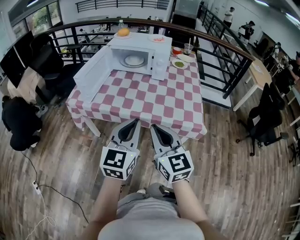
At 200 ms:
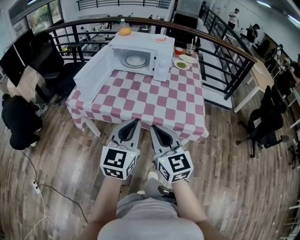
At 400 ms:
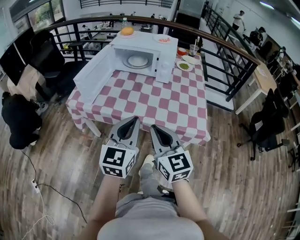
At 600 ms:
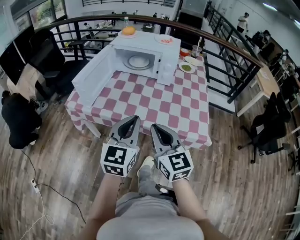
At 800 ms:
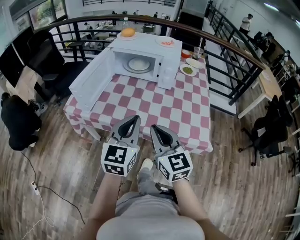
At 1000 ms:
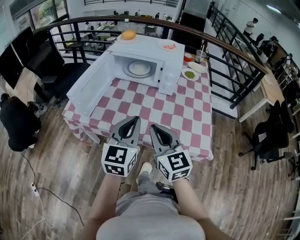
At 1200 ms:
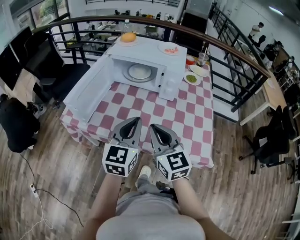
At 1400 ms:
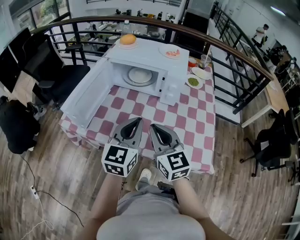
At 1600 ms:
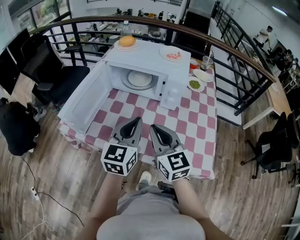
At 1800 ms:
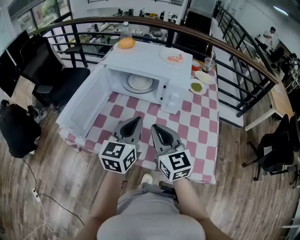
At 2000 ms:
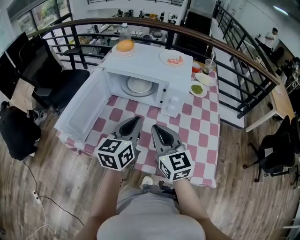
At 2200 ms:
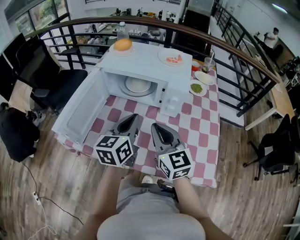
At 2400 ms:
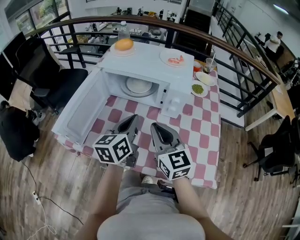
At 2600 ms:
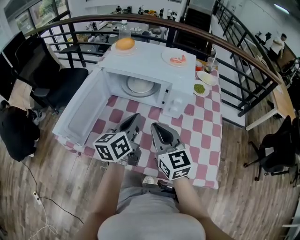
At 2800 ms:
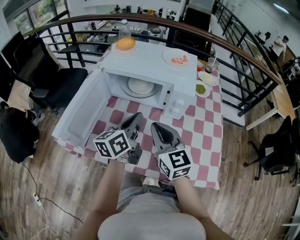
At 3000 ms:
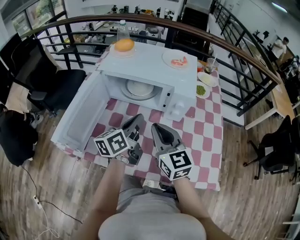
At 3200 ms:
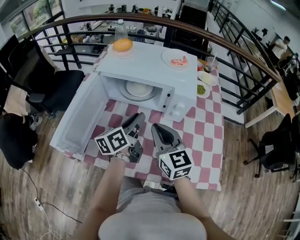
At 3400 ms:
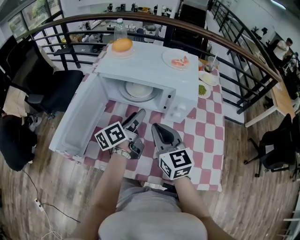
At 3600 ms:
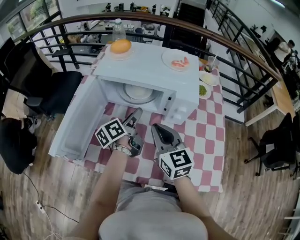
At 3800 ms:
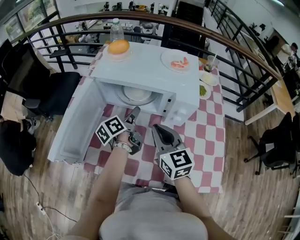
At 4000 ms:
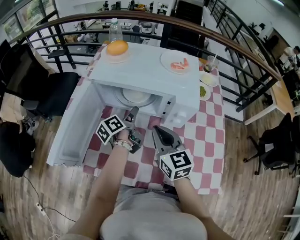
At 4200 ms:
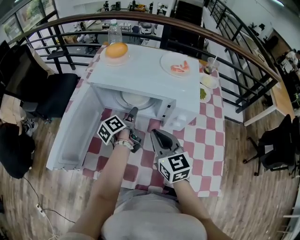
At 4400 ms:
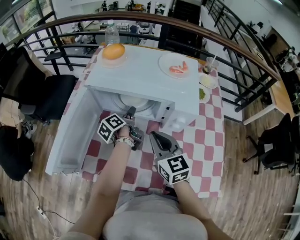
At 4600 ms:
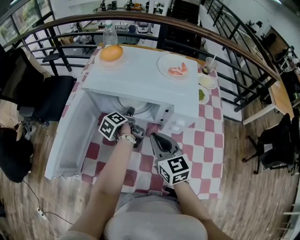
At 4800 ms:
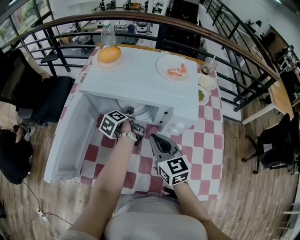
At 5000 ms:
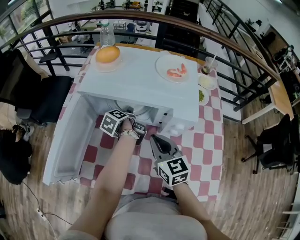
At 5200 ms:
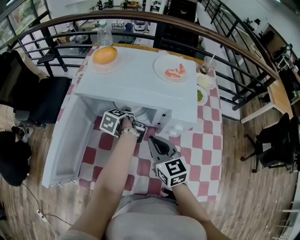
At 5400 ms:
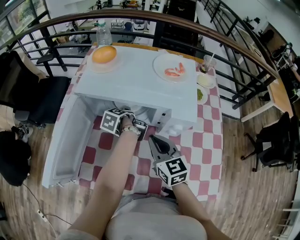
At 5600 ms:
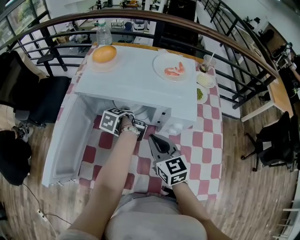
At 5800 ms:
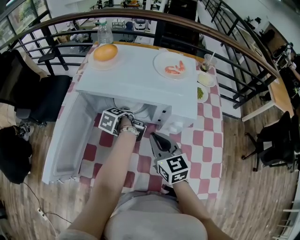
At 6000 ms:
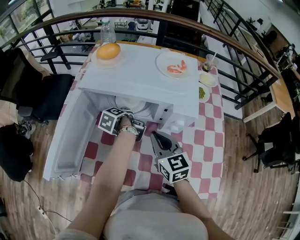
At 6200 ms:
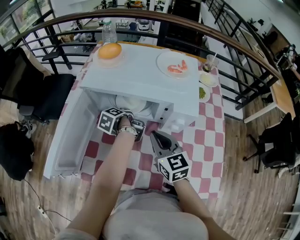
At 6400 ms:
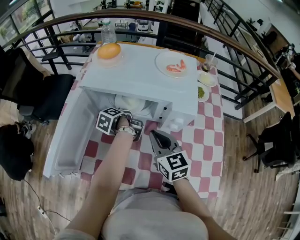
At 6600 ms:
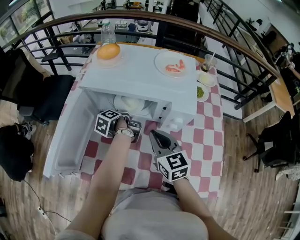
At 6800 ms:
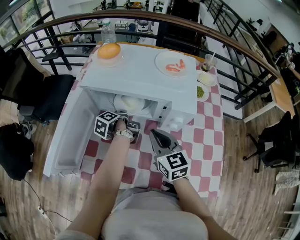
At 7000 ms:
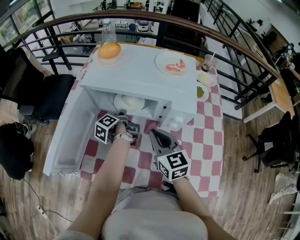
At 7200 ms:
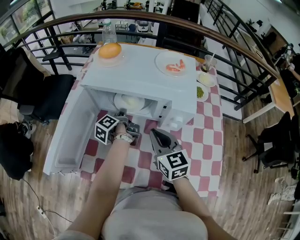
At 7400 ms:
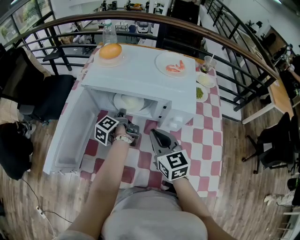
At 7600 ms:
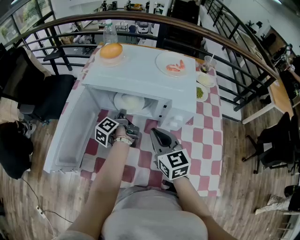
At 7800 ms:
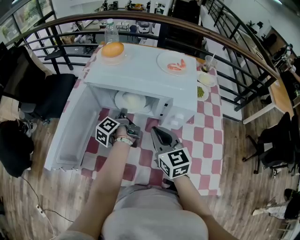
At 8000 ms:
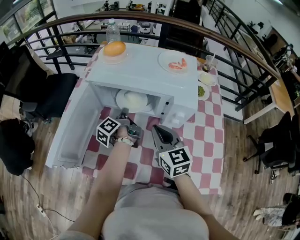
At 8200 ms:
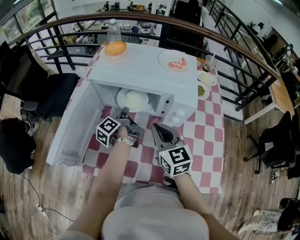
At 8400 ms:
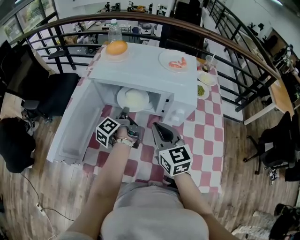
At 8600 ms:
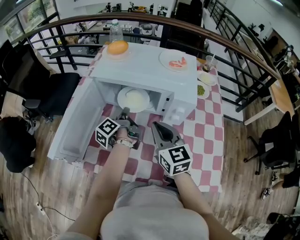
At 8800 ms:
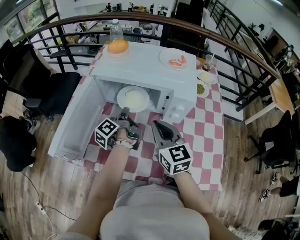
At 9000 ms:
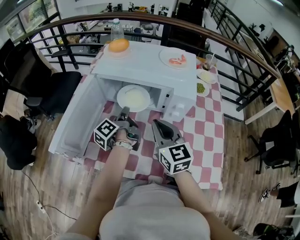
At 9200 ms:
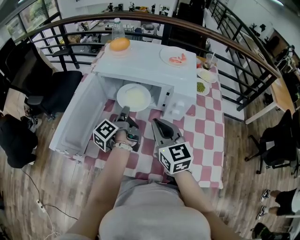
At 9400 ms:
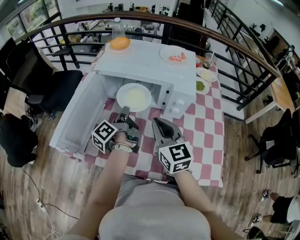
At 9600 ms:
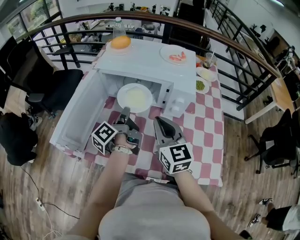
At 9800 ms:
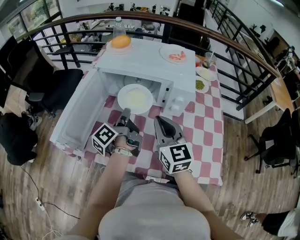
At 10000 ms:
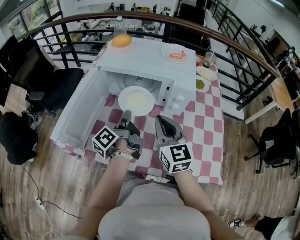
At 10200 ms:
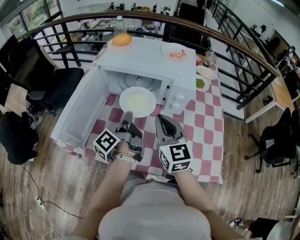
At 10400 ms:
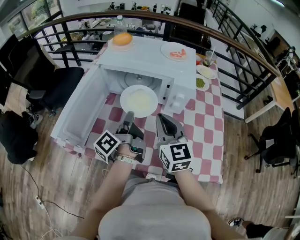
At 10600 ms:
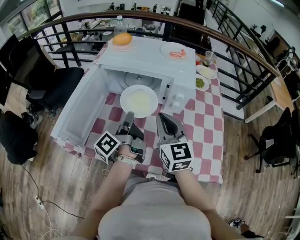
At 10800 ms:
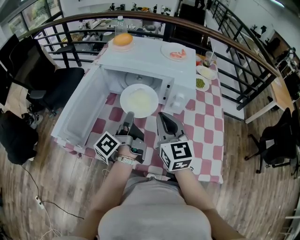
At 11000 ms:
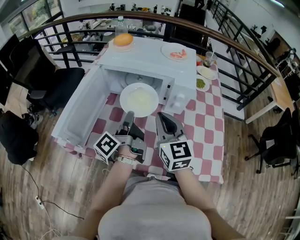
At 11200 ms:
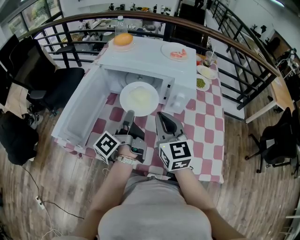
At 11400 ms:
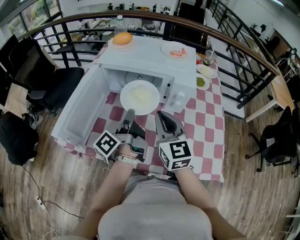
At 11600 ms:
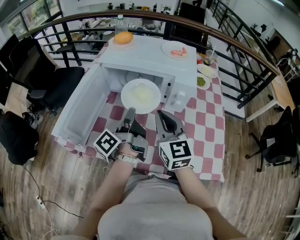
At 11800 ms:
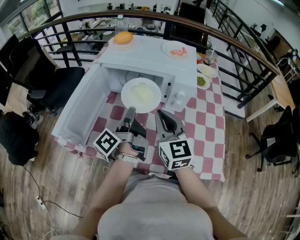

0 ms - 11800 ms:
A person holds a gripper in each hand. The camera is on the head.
0 ms - 1400 ms: The two grippers go approximately 25 cm forward.
1400 ms - 3000 ms: The left gripper is displaced forward and downward by roughly 20 cm, and rolls counterclockwise, seen from behind, by approximately 40 degrees. The right gripper heads forward, covering roughly 15 cm.
3000 ms - 4400 ms: The right gripper goes some 10 cm forward and downward; the left gripper is displaced forward and downward by some 20 cm, changes its angle by about 40 degrees, and opens.
4400 ms - 6000 ms: The left gripper swivels about 20 degrees, and closes.
6000 ms - 7400 ms: The left gripper rotates about 20 degrees, and closes.
7400 ms - 8800 ms: The left gripper heads backward and upward, covering some 10 cm.
8800 ms - 10400 ms: The right gripper ends up about 5 cm from where it was. Meanwhile the left gripper is displaced backward and upward by some 15 cm.
10400 ms - 11800 ms: There are only small adjustments of the grippers.

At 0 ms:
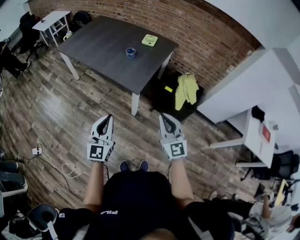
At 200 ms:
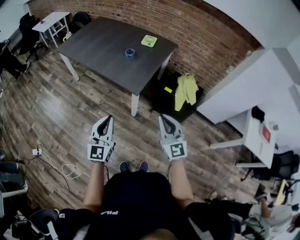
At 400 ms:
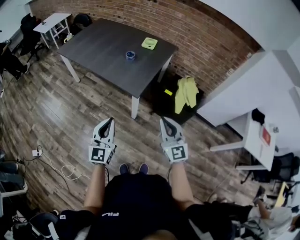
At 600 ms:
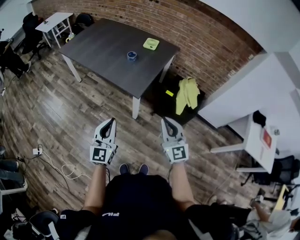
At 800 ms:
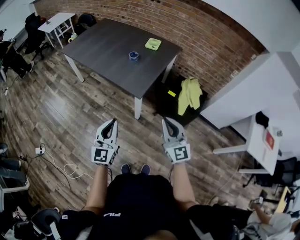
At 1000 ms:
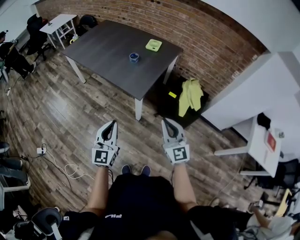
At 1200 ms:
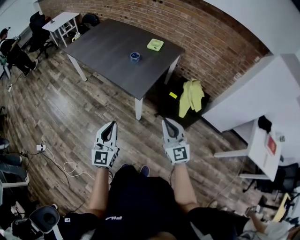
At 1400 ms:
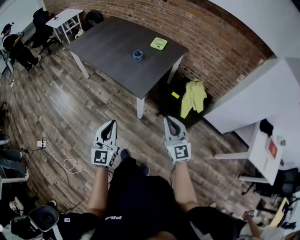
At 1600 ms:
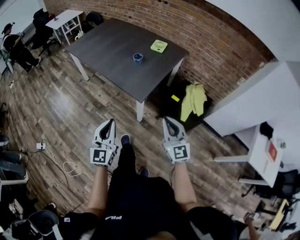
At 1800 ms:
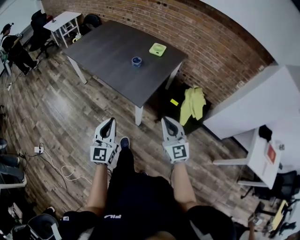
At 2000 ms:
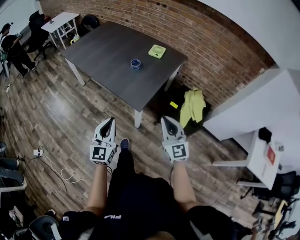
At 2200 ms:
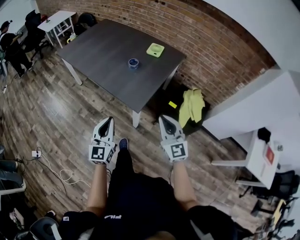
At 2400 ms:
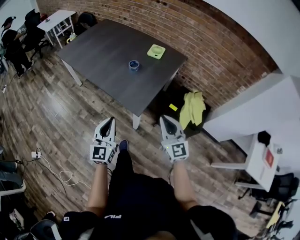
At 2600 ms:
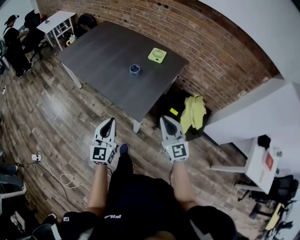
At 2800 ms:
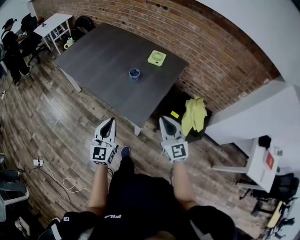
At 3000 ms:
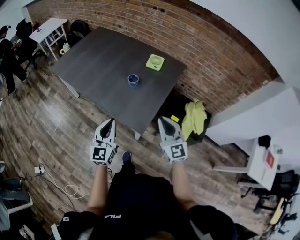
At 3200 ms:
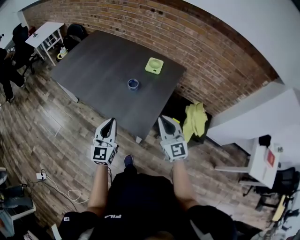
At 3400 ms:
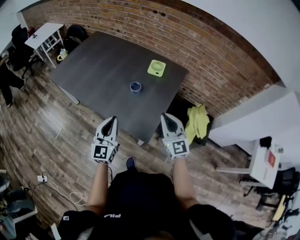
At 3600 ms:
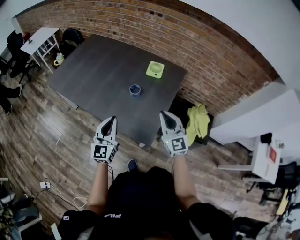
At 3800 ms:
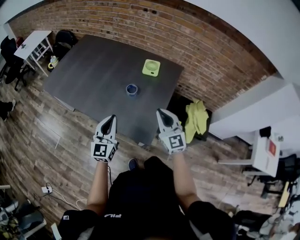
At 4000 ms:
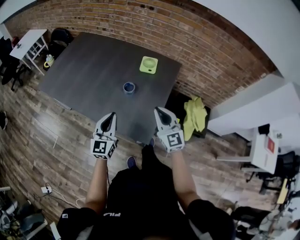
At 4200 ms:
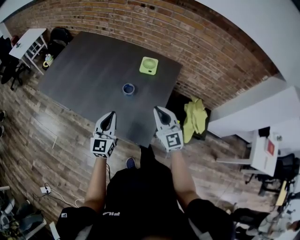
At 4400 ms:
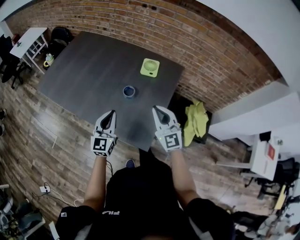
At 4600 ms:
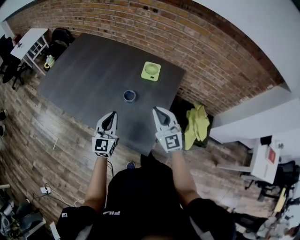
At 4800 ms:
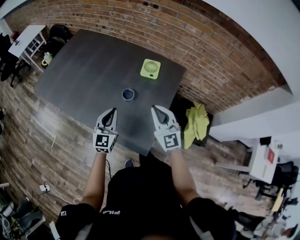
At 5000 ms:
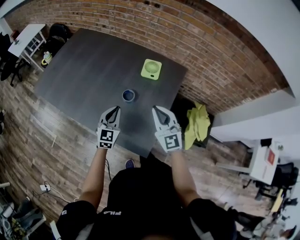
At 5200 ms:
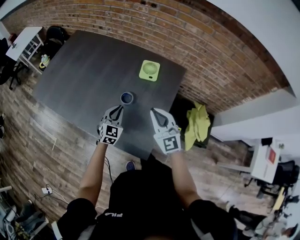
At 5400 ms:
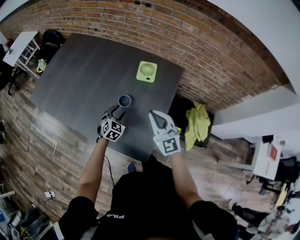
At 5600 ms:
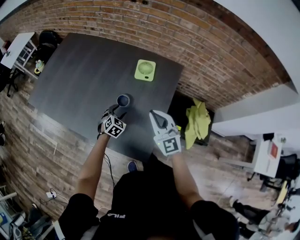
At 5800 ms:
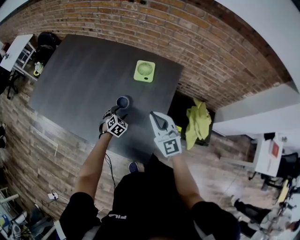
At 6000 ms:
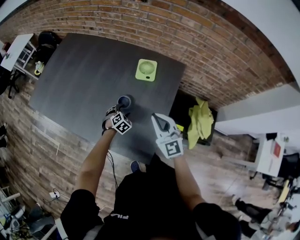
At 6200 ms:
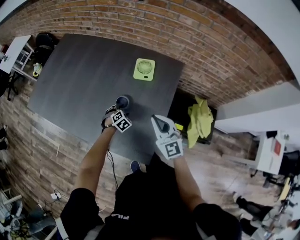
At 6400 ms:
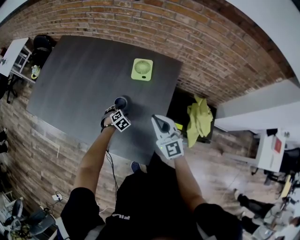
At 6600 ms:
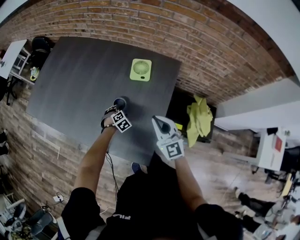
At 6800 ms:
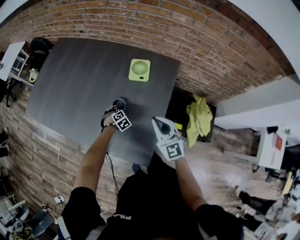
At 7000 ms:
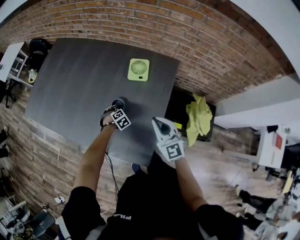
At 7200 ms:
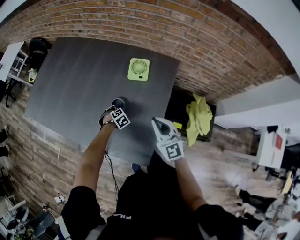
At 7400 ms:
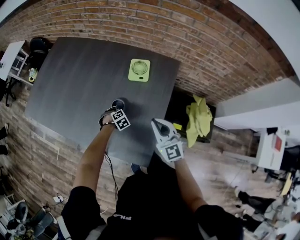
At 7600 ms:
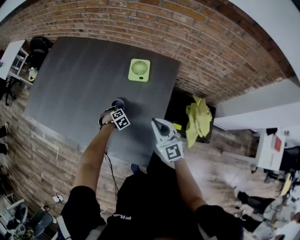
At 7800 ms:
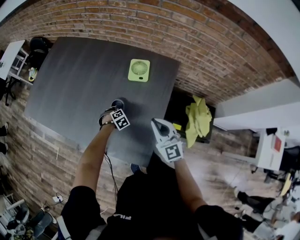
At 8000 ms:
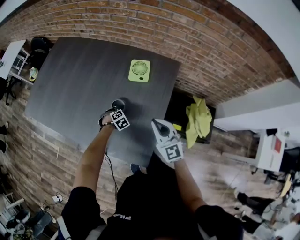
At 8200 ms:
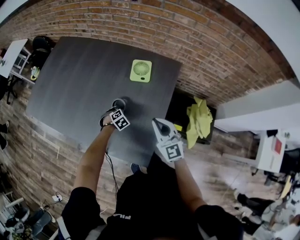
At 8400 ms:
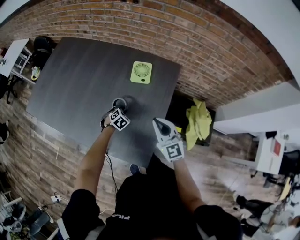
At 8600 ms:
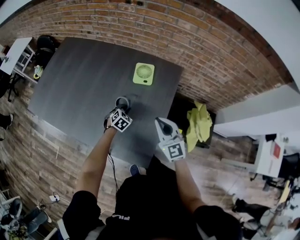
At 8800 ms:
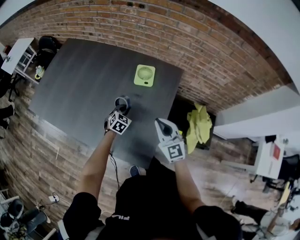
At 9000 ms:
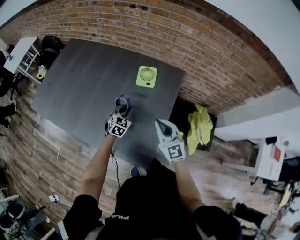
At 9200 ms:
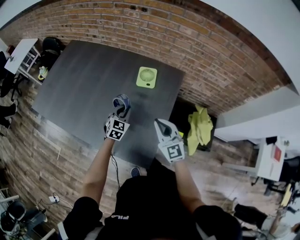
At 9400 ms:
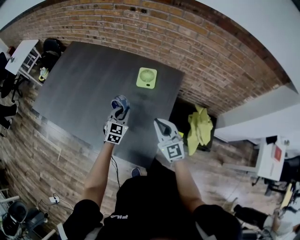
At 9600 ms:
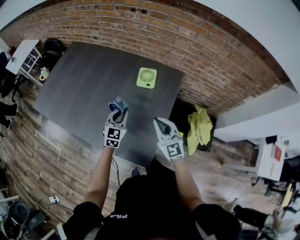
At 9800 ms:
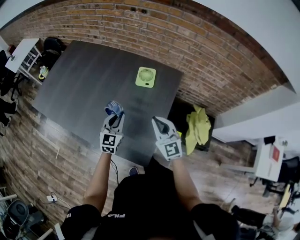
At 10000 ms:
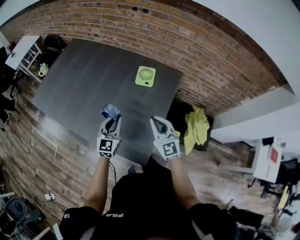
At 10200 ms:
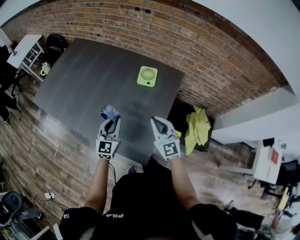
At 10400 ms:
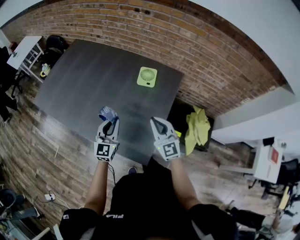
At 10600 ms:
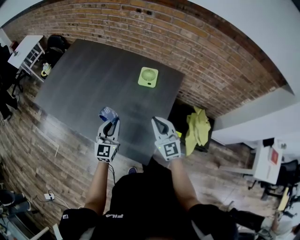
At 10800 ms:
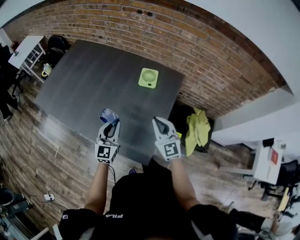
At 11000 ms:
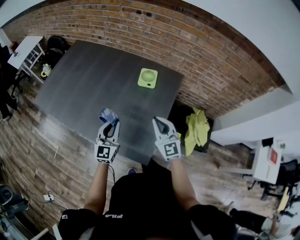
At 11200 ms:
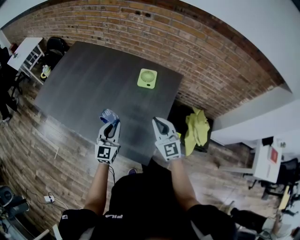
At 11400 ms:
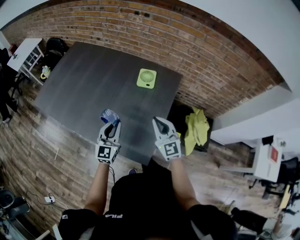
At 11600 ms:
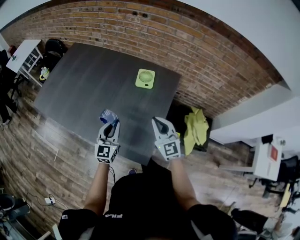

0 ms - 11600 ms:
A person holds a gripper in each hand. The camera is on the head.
0 ms - 1400 ms: The right gripper goes some 5 cm to the right.
1400 ms - 2800 ms: Both grippers move forward, roughly 25 cm.
2800 ms - 4400 ms: Both grippers move forward, about 25 cm.
4400 ms - 5800 ms: The left gripper moves downward and forward, some 30 cm, tilts its fingers some 50 degrees downward, and opens its fingers, while the right gripper goes some 10 cm forward.
5800 ms - 7200 ms: Both grippers travel together downward, approximately 10 cm. The right gripper changes its angle by about 20 degrees. Meanwhile the left gripper rotates some 30 degrees.
7200 ms - 8800 ms: The left gripper shifts roughly 10 cm upward, tilts its fingers roughly 30 degrees upward, and closes.
8800 ms - 10200 ms: The left gripper is displaced upward and backward by about 20 cm, and tilts its fingers roughly 30 degrees upward.
10200 ms - 11600 ms: The grippers make only small movements.
